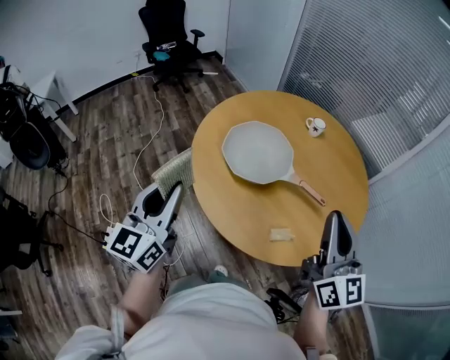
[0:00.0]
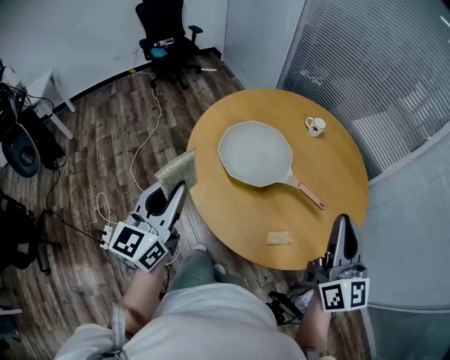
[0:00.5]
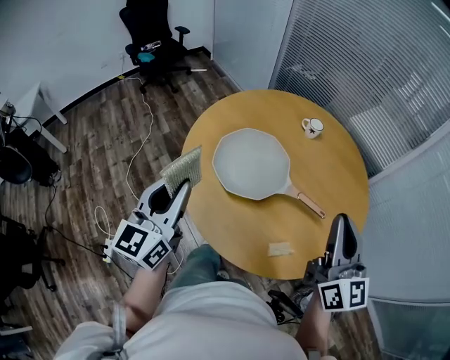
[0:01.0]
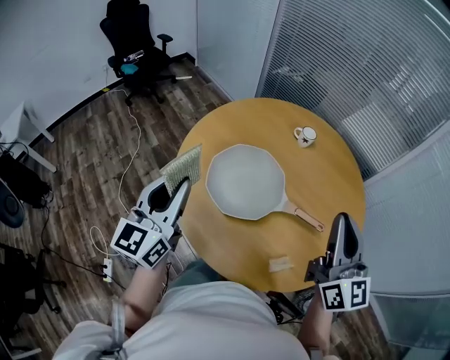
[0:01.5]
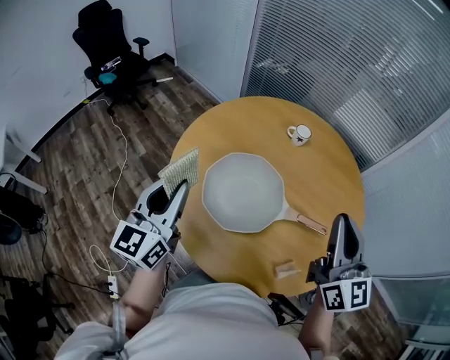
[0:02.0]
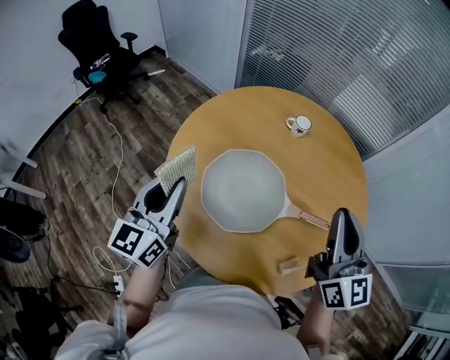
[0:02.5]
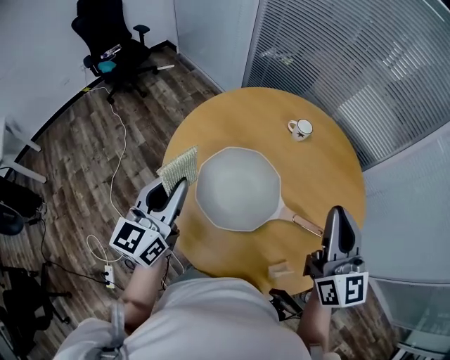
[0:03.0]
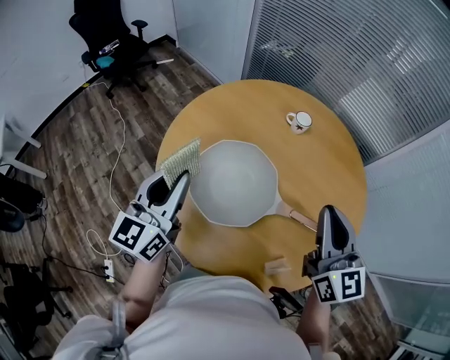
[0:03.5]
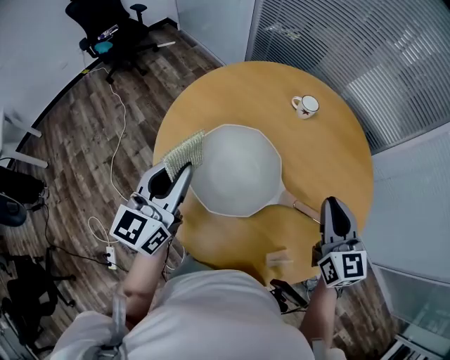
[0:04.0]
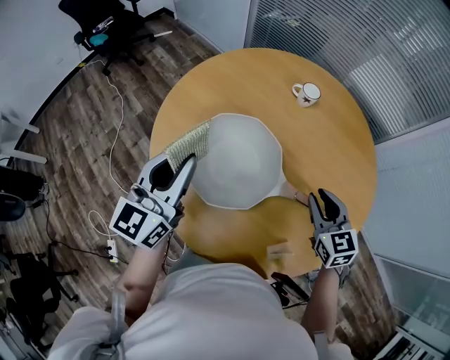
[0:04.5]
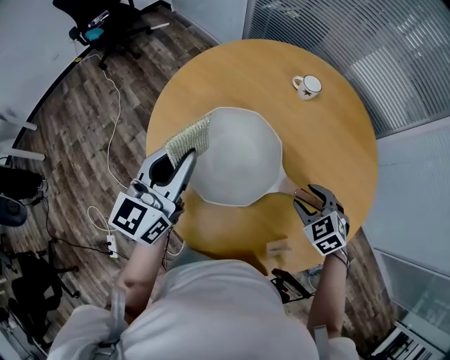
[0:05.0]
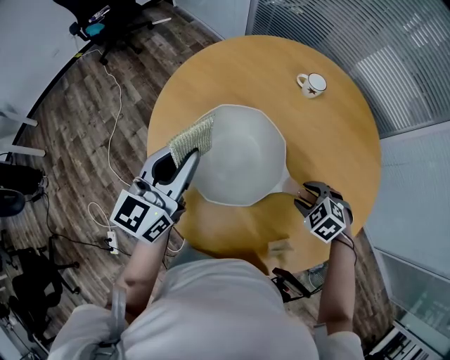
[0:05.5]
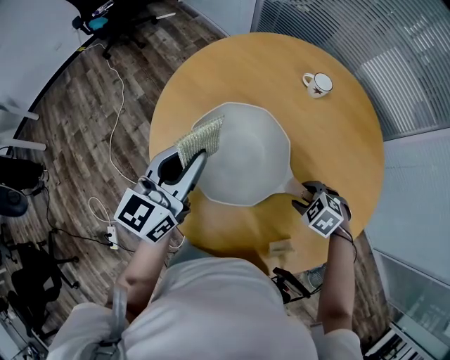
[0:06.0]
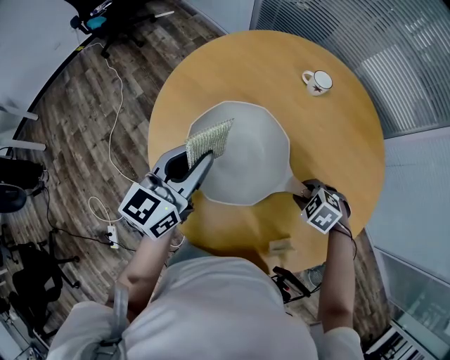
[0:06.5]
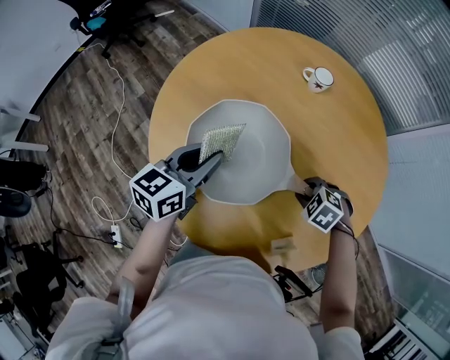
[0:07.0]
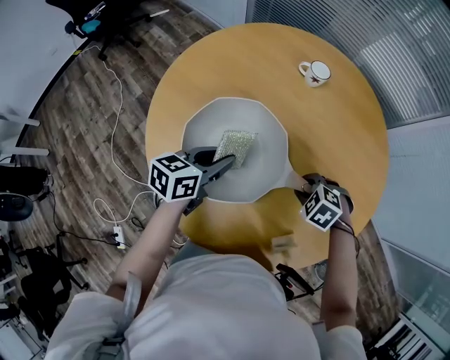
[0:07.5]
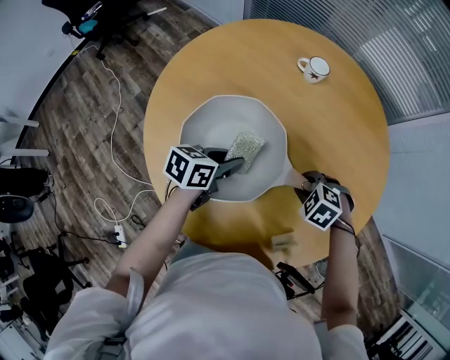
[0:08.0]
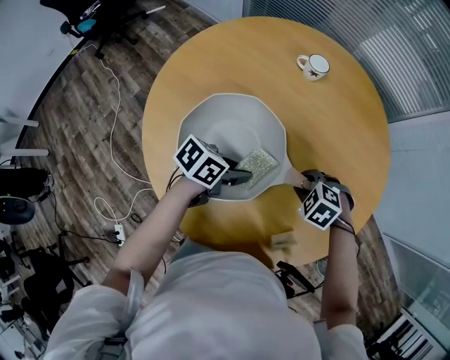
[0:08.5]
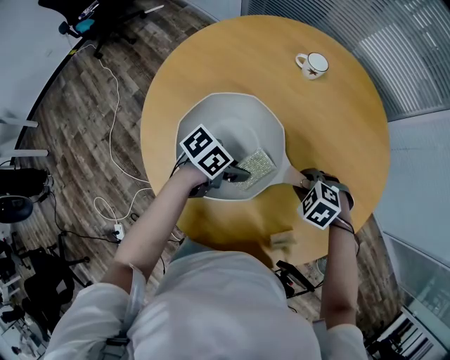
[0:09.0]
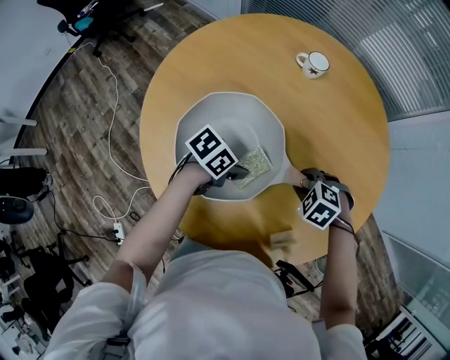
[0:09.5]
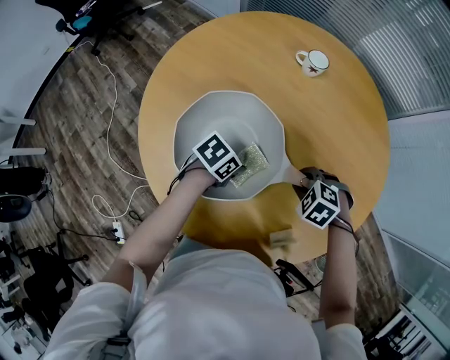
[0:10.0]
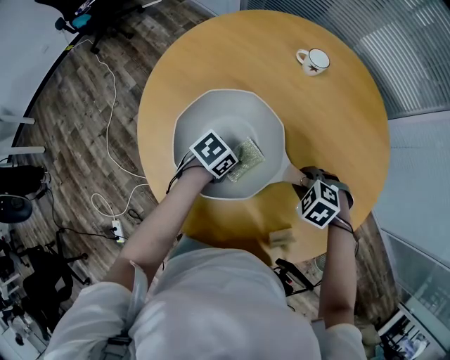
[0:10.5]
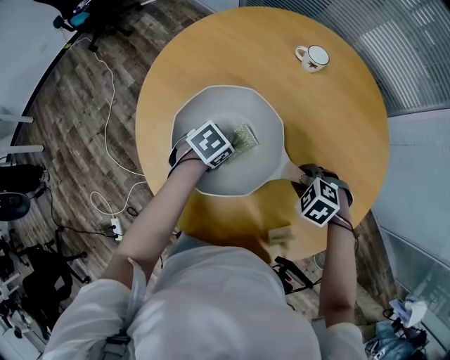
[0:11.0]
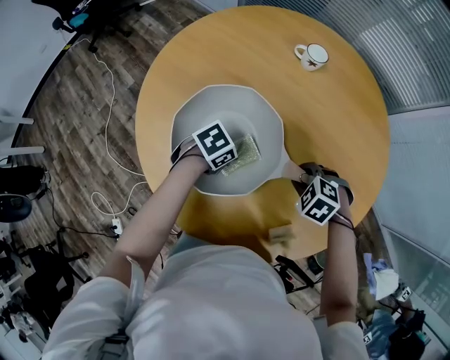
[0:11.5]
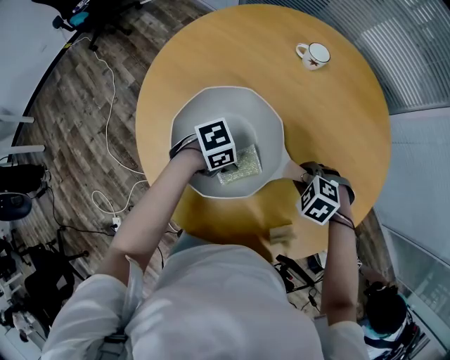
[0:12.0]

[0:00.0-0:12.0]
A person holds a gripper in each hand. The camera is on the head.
0:00.0 to 0:02.0: The right gripper shifts roughly 20 cm forward. Meanwhile the left gripper heads forward, covering about 30 cm.
0:02.0 to 0:04.0: The left gripper travels to the right and downward by about 10 cm. Meanwhile the right gripper shifts approximately 15 cm downward and forward, and swivels roughly 20 degrees.
0:04.0 to 0:06.0: The right gripper shifts about 25 cm downward, tips its fingers downward by about 60 degrees, and opens its fingers. The left gripper moves approximately 5 cm.
0:06.0 to 0:08.0: The right gripper closes up, while the left gripper is displaced downward by roughly 20 cm, and changes its angle by about 50 degrees.
0:08.0 to 0:10.0: The left gripper moves downward, some 5 cm, and rotates about 30 degrees.
0:10.0 to 0:12.0: The left gripper changes its angle by some 20 degrees.

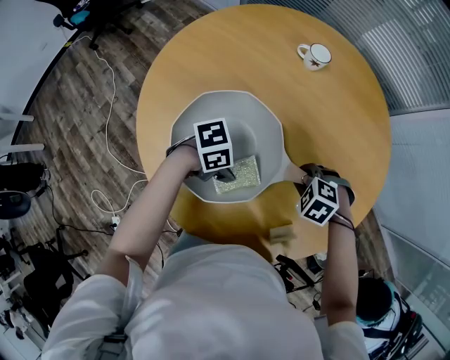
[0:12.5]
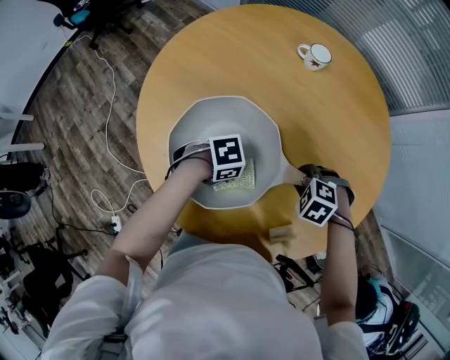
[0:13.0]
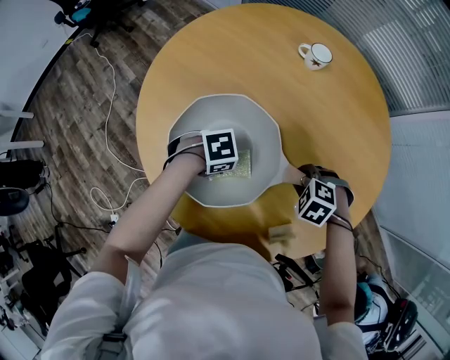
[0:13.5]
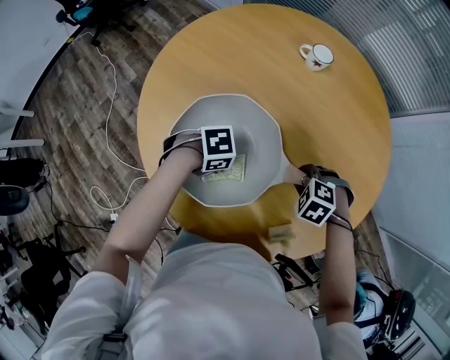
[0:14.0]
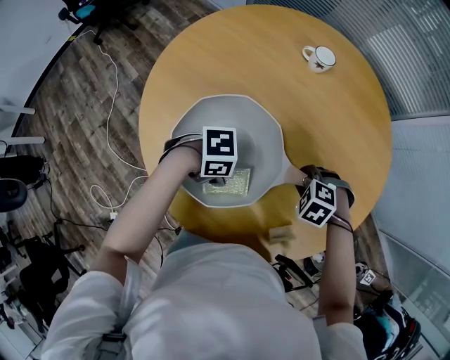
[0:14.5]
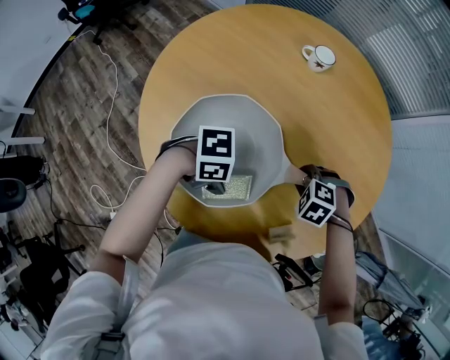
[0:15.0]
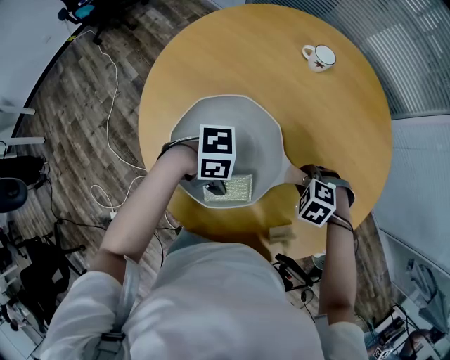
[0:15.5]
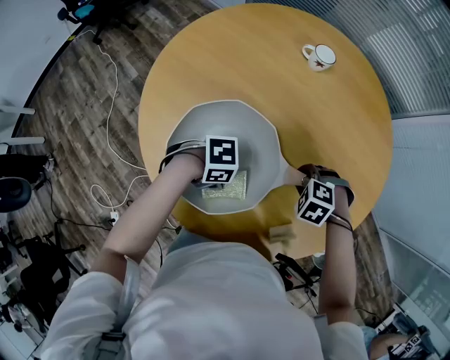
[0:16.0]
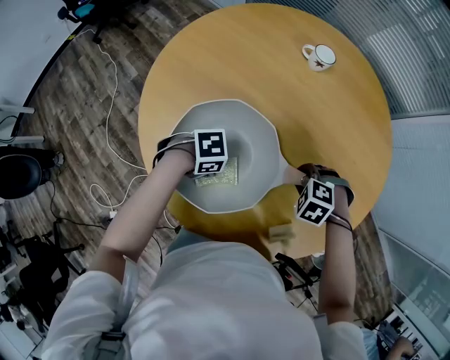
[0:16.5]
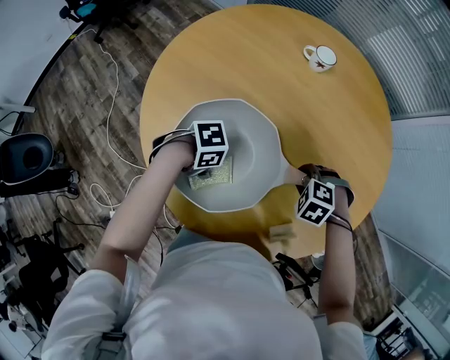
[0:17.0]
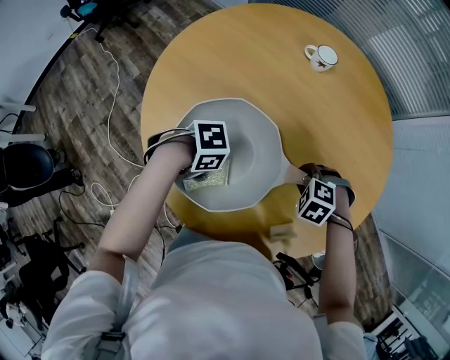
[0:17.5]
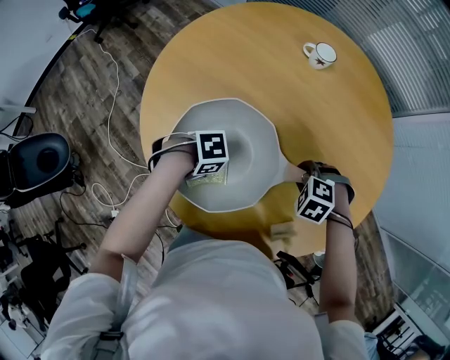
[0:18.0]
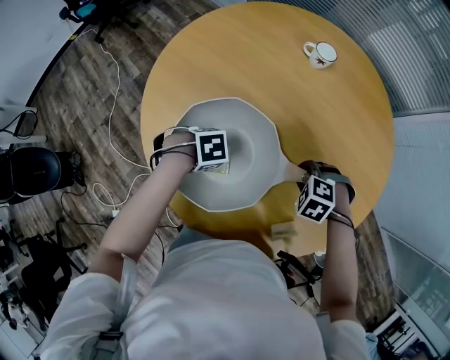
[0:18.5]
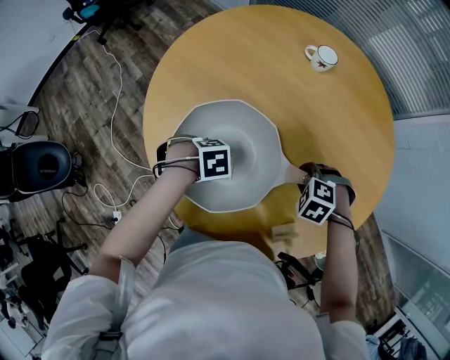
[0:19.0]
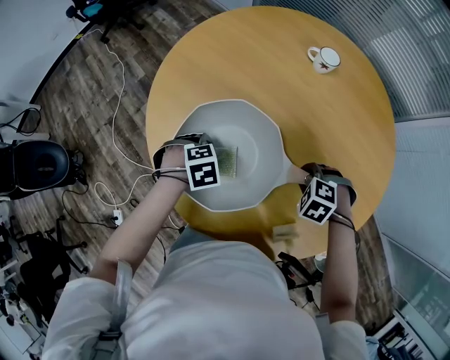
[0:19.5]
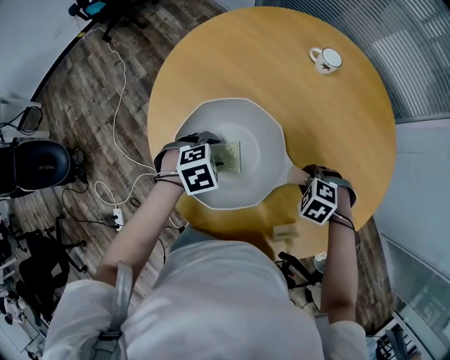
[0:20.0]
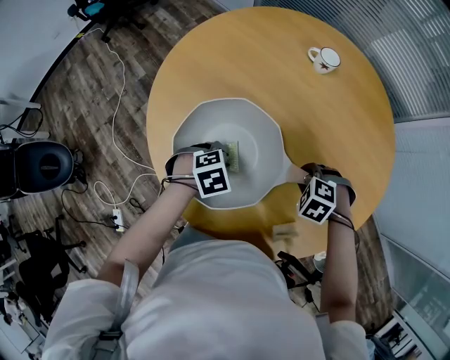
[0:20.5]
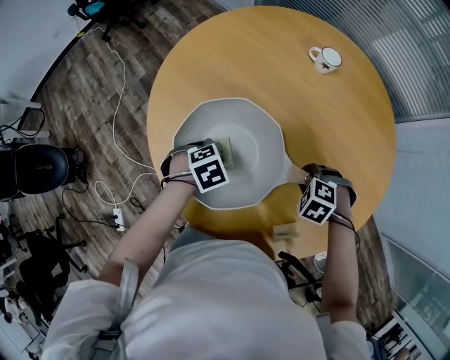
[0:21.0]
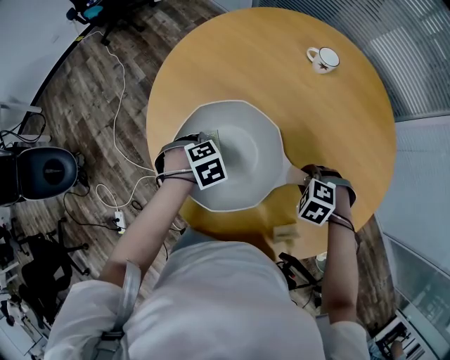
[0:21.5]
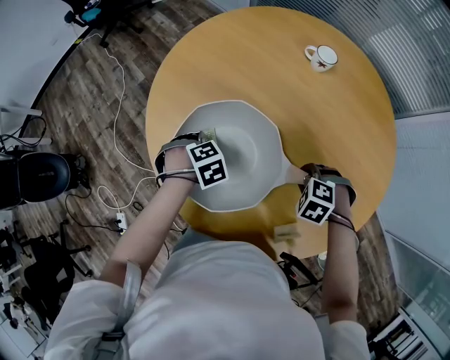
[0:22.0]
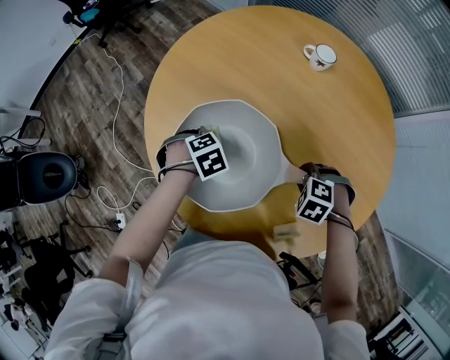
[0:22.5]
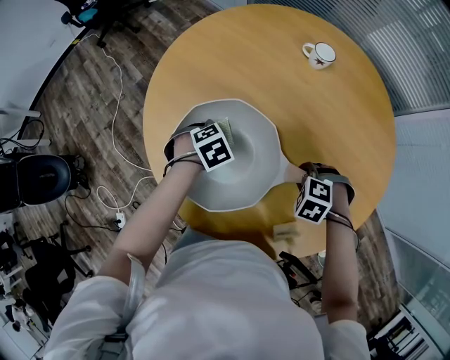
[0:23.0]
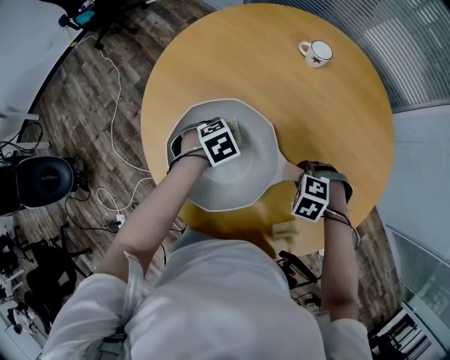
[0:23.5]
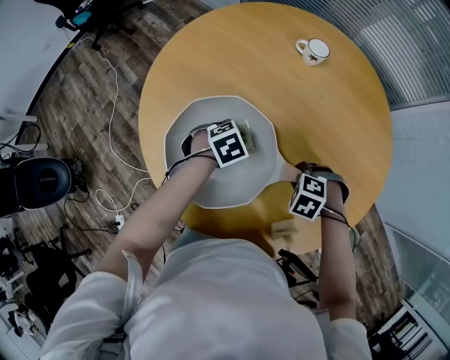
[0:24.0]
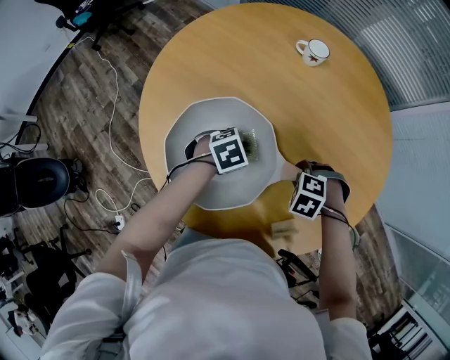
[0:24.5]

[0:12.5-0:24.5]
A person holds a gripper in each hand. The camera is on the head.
0:14.5 to 0:16.5: The left gripper ends up roughly 5 cm from where it was.
0:16.5 to 0:18.5: The grippers make only small movements.
0:18.5 to 0:20.5: The left gripper shifts by some 5 cm, changes its angle by roughly 30 degrees, and opens, then closes again.
0:20.5 to 0:22.5: The left gripper moves some 5 cm.
0:22.5 to 0:24.5: The left gripper shifts by approximately 15 cm, and rotates some 20 degrees.

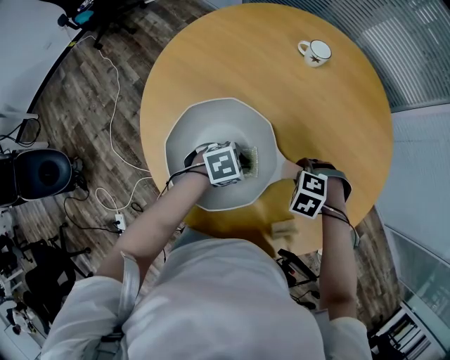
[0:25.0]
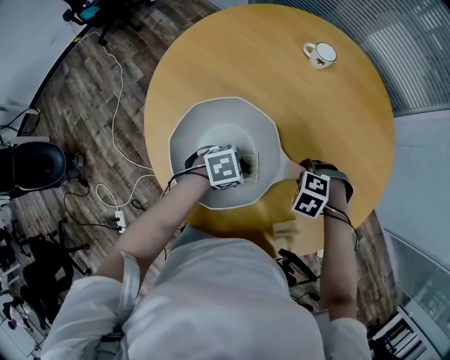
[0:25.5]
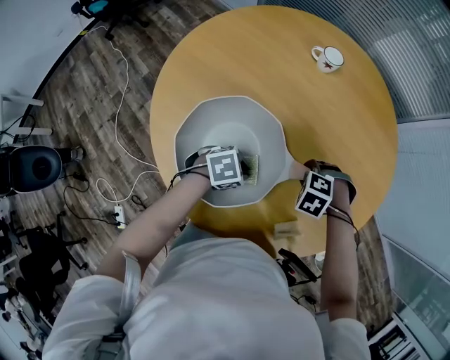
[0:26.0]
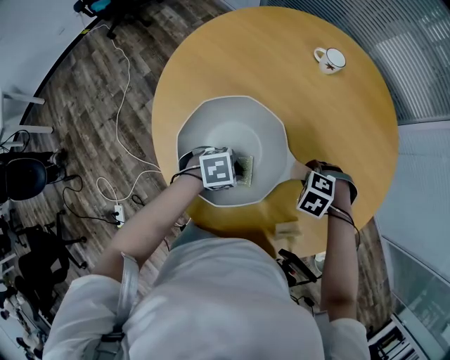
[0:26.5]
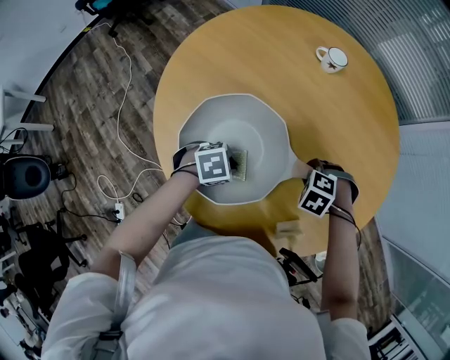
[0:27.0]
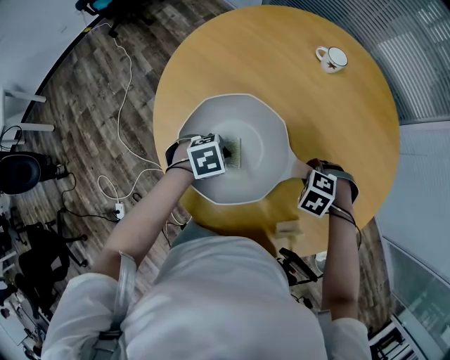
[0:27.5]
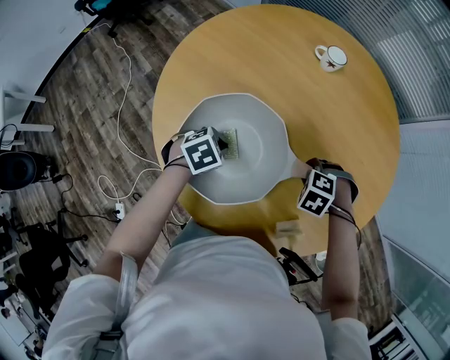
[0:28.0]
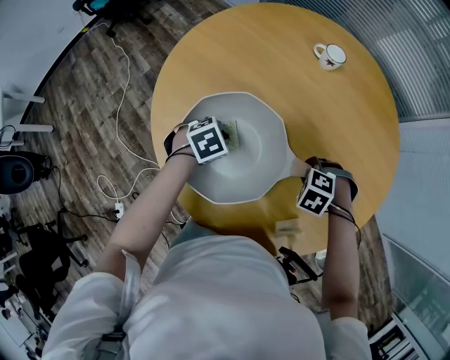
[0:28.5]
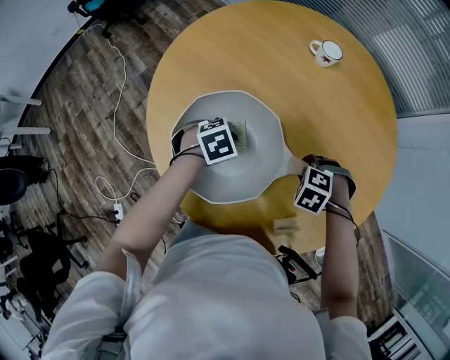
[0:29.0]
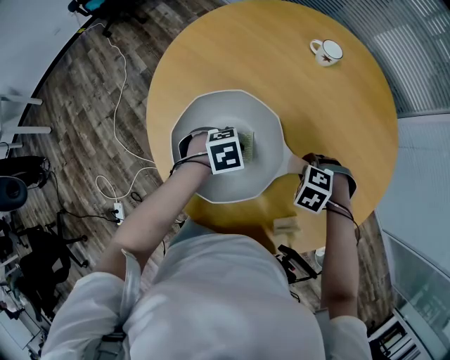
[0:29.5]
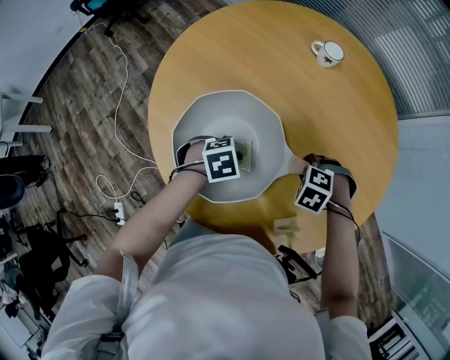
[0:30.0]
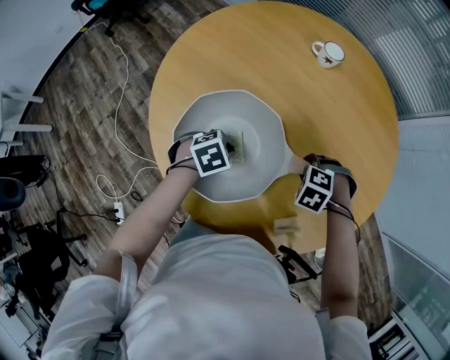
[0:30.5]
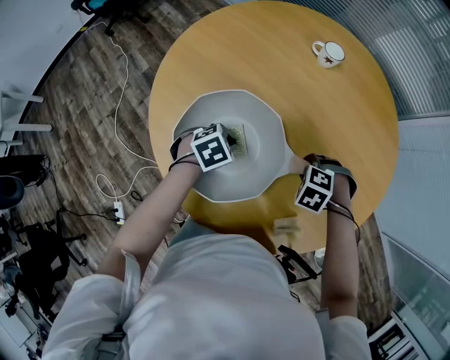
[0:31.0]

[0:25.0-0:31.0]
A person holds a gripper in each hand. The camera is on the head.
0:25.0 to 0:27.0: The left gripper moves approximately 10 cm.
0:27.0 to 0:29.0: The left gripper ends up about 10 cm from where it was.
0:29.0 to 0:31.0: The grippers move only a little.
